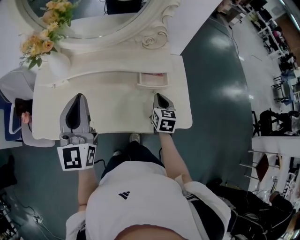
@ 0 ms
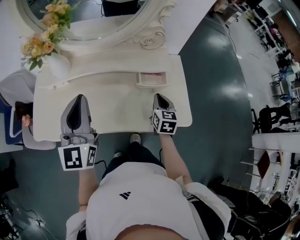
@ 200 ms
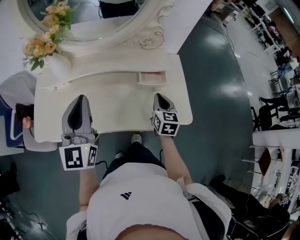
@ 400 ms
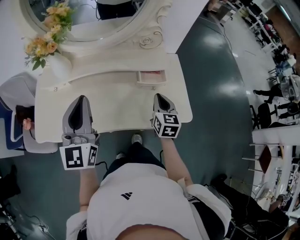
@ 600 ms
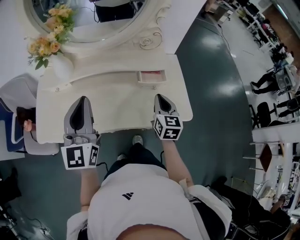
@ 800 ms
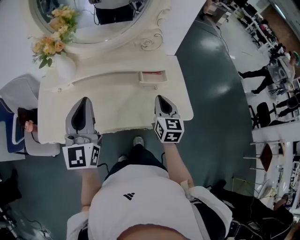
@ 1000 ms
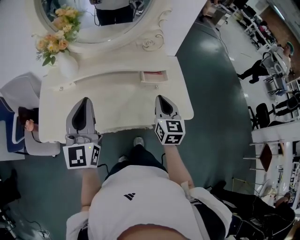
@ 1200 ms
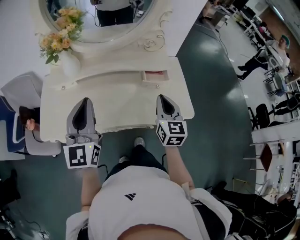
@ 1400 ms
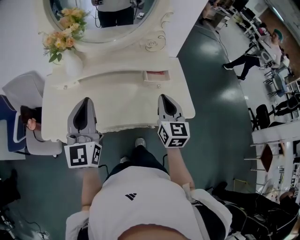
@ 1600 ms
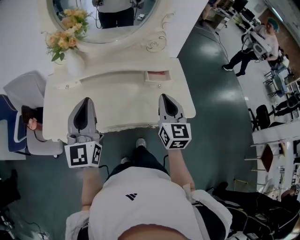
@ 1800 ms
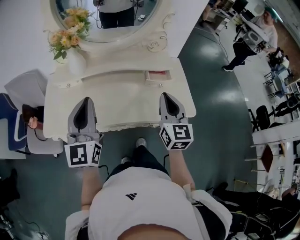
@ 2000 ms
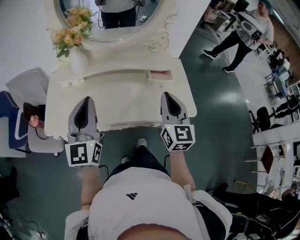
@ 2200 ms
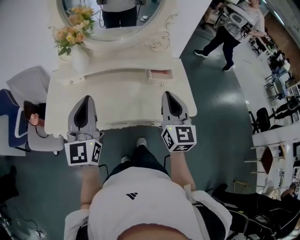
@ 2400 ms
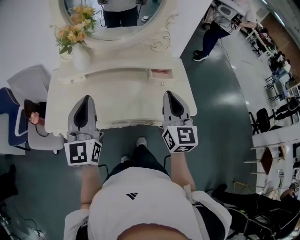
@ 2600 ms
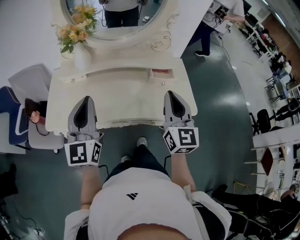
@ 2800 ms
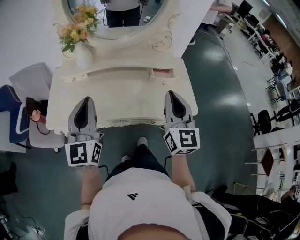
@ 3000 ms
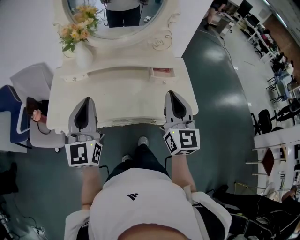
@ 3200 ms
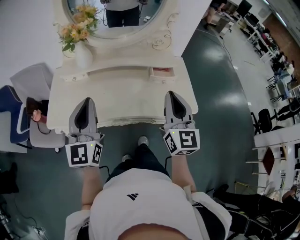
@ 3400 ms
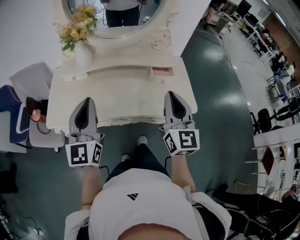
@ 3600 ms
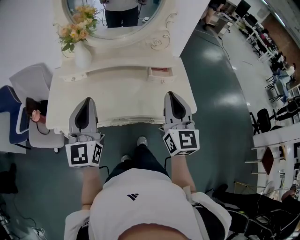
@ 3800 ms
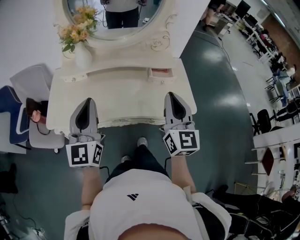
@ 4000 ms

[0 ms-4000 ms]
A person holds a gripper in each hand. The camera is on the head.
0 ms to 1400 ms: The right gripper travels upward and backward by some 15 cm; the left gripper shifts approximately 5 cm backward.
1400 ms to 2600 ms: The left gripper moves some 5 cm. The right gripper moves upward and backward, about 10 cm.
2600 ms to 4000 ms: The grippers move only a little.

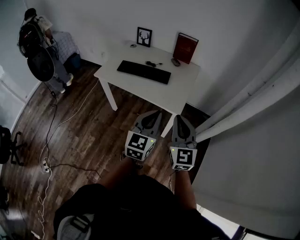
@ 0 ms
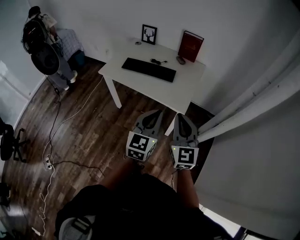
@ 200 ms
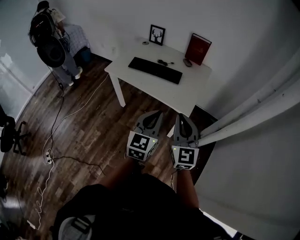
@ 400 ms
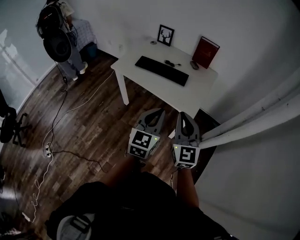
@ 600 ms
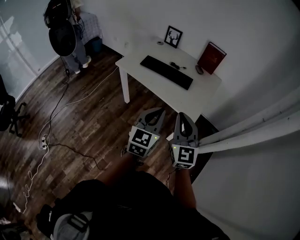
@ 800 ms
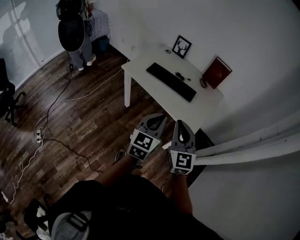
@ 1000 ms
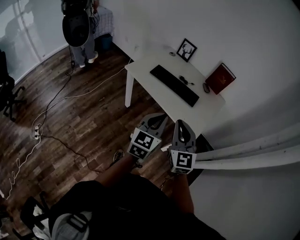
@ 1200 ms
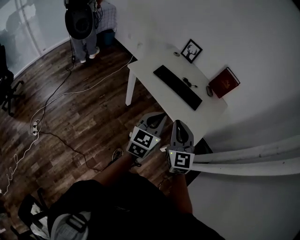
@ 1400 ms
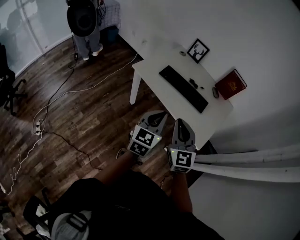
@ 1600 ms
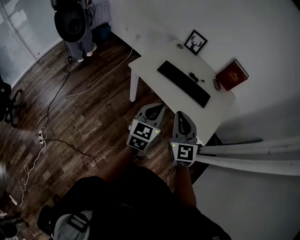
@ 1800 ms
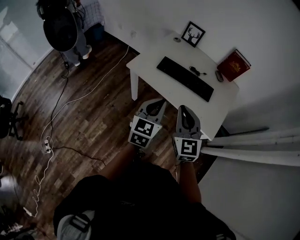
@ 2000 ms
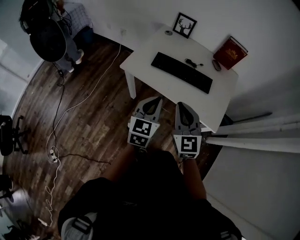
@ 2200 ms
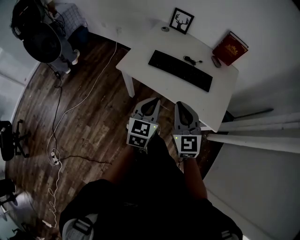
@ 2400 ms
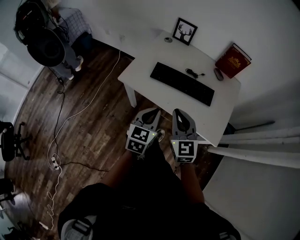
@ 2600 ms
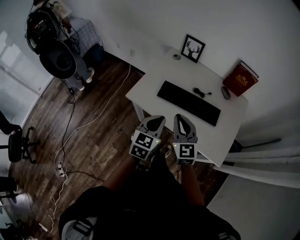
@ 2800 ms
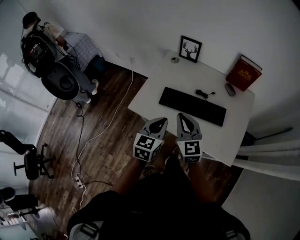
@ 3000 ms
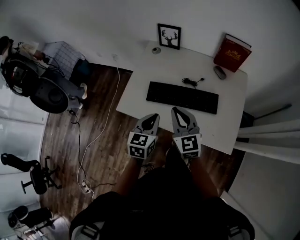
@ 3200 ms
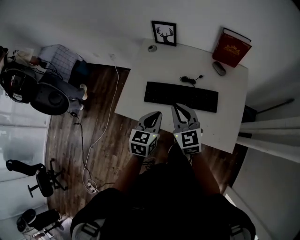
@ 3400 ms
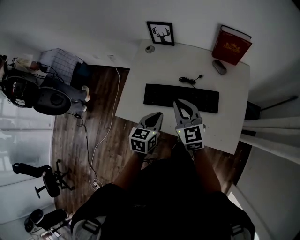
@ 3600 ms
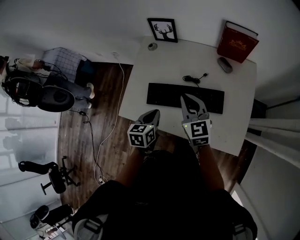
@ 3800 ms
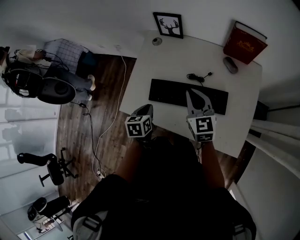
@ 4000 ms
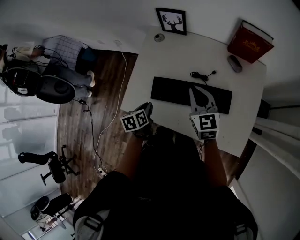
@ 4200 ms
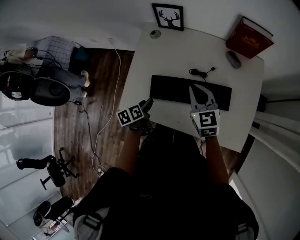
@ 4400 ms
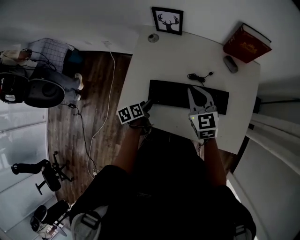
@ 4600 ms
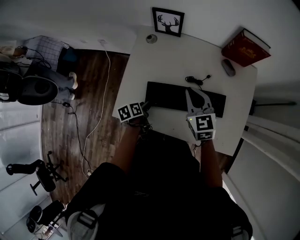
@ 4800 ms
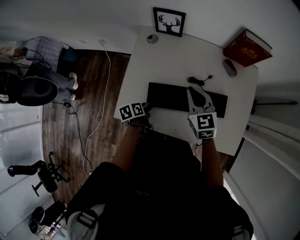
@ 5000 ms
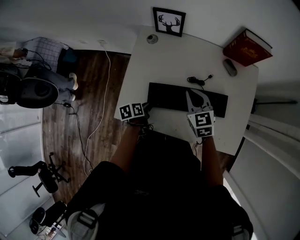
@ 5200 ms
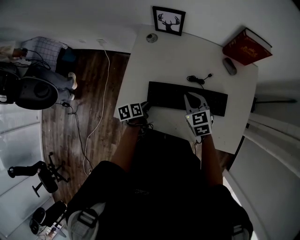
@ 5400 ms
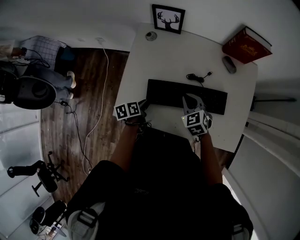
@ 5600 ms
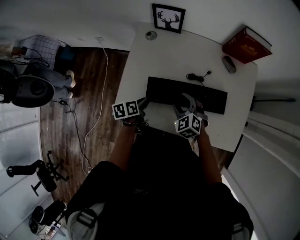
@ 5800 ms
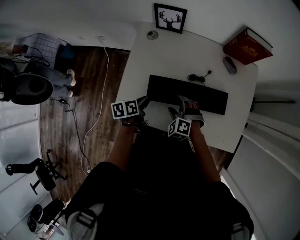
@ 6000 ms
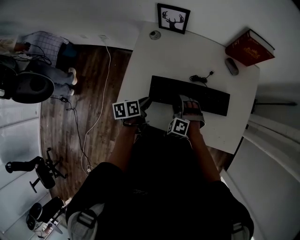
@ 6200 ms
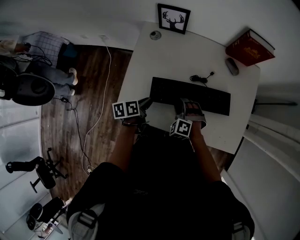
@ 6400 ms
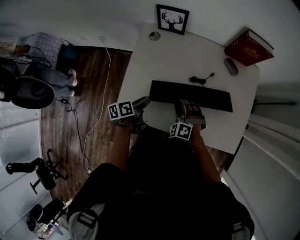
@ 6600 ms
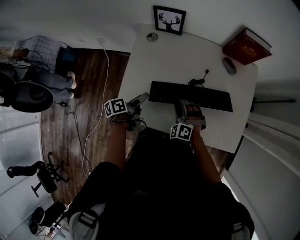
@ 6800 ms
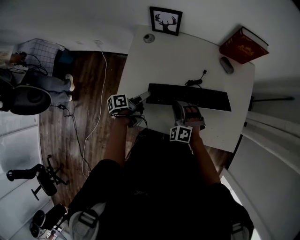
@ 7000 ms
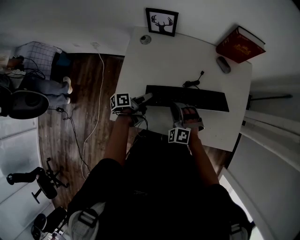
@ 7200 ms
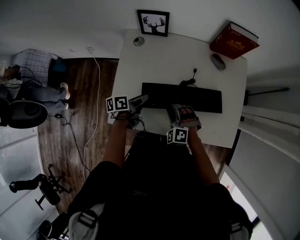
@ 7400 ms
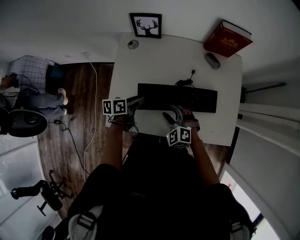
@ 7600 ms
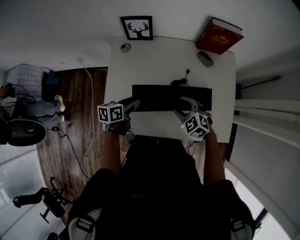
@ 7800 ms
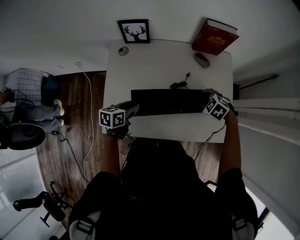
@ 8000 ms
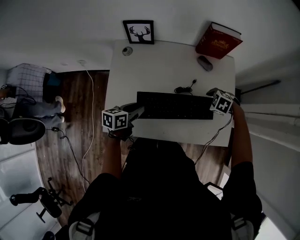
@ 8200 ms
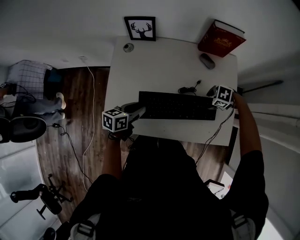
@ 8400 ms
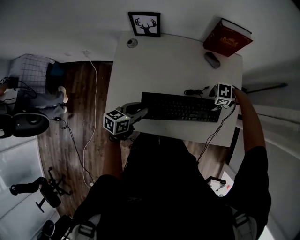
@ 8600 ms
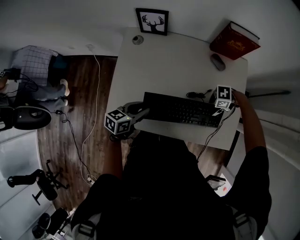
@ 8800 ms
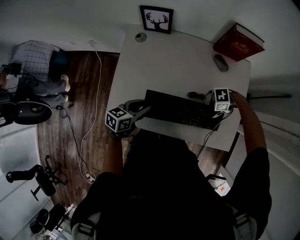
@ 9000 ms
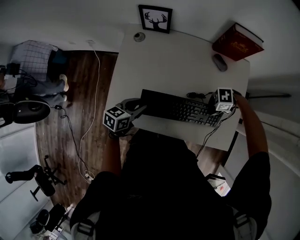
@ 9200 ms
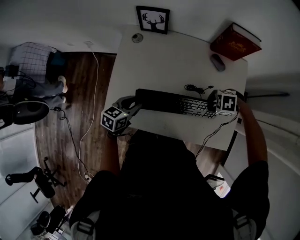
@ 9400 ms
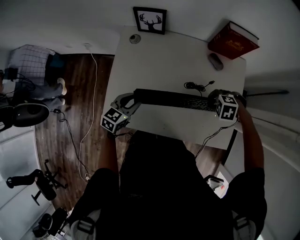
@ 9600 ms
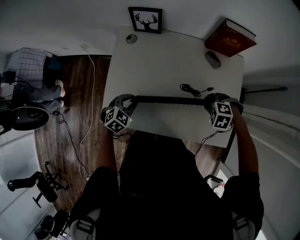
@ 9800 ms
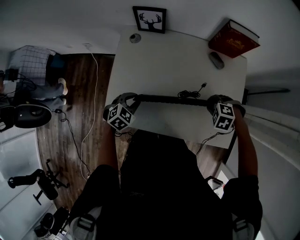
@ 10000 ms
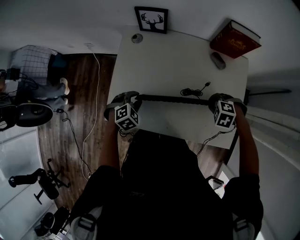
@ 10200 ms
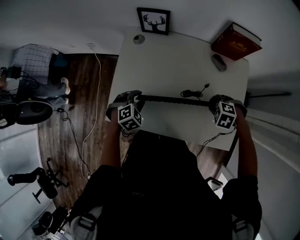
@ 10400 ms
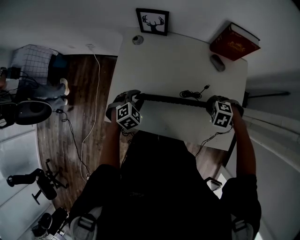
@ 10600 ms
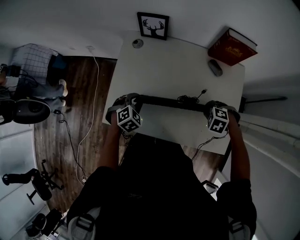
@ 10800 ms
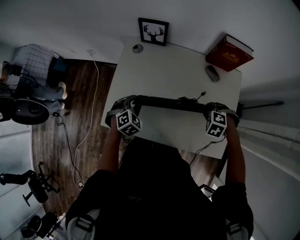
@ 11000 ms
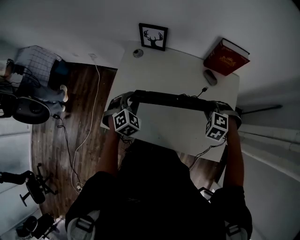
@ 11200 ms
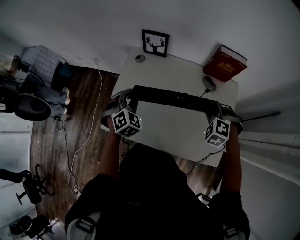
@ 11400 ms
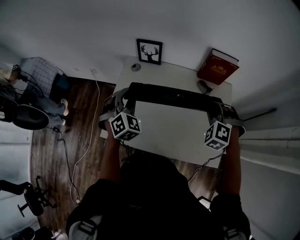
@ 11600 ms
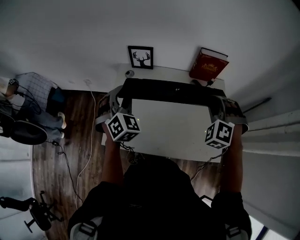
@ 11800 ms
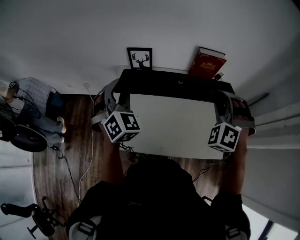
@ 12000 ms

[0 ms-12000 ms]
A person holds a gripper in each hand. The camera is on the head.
0 ms to 1600 ms: Both grippers travel together to the left and forward, approximately 25 cm. The right gripper turns by about 20 degrees.
1600 ms to 3000 ms: Both grippers travel together forward, approximately 25 cm.
3000 ms to 4400 ms: The left gripper goes about 25 cm downward, forward and to the left, rolls counterclockwise, seen from behind, by some 40 degrees, and opens its fingers. The right gripper heads forward, downward and to the right, covering roughly 20 cm.
4400 ms to 6000 ms: The right gripper heads downward and to the left, covering some 15 cm, rolls counterclockwise, seen from behind, by some 50 degrees, and opens; the left gripper closes its fingers.
6000 ms to 7600 ms: The right gripper closes and opens again; the left gripper shifts by approximately 5 cm, changes its angle by about 20 degrees, and opens, then closes once more.
7600 ms to 9000 ms: The right gripper moves roughly 25 cm, and swivels approximately 80 degrees. The left gripper moves about 5 cm, and swivels about 20 degrees.
9000 ms to 10400 ms: The right gripper travels upward by some 5 cm, and tips its fingers downward by some 30 degrees, while the left gripper twists about 50 degrees clockwise, seen from behind.
10400 ms to 12000 ms: The grippers both shift upward by about 30 cm. The left gripper points its fingers approximately 40 degrees further upward. The right gripper points its fingers approximately 50 degrees further upward.

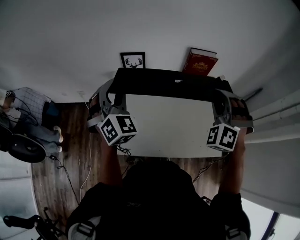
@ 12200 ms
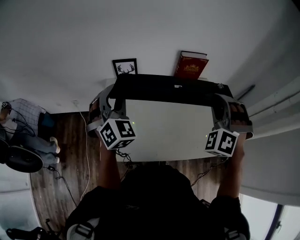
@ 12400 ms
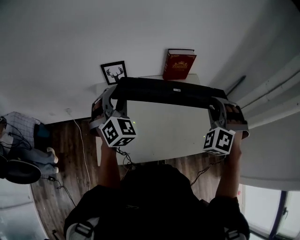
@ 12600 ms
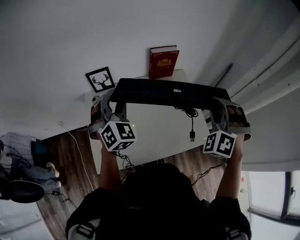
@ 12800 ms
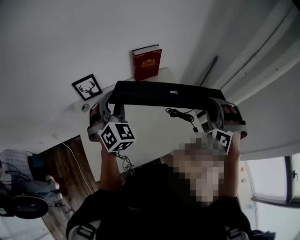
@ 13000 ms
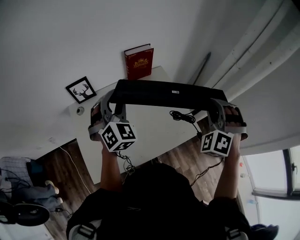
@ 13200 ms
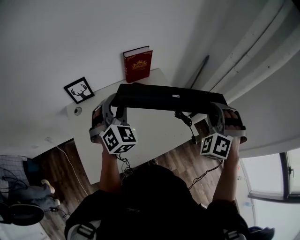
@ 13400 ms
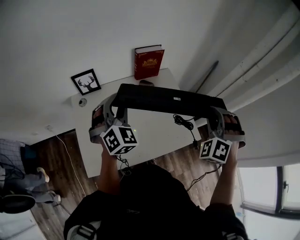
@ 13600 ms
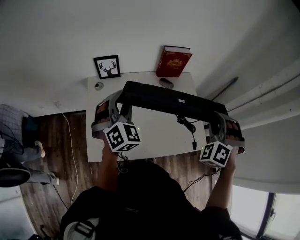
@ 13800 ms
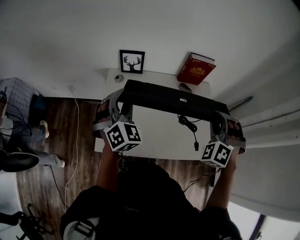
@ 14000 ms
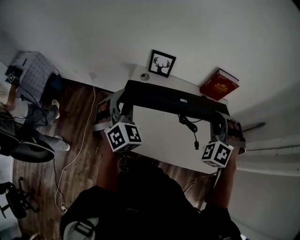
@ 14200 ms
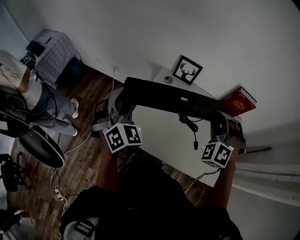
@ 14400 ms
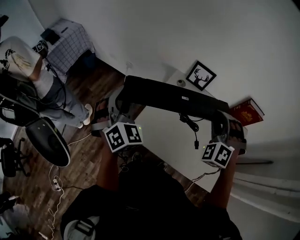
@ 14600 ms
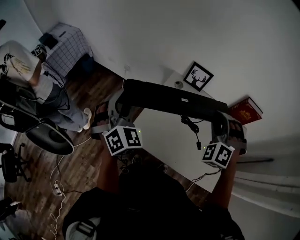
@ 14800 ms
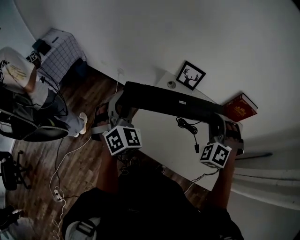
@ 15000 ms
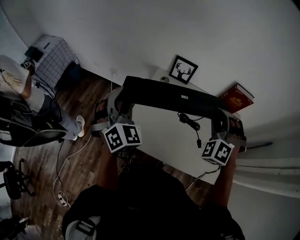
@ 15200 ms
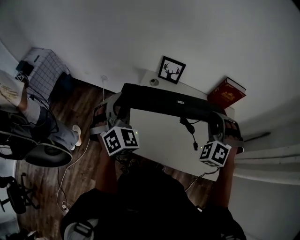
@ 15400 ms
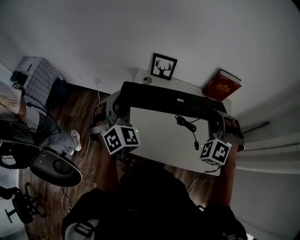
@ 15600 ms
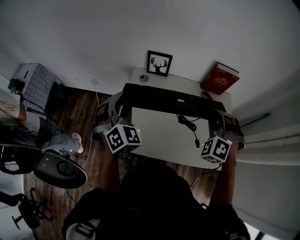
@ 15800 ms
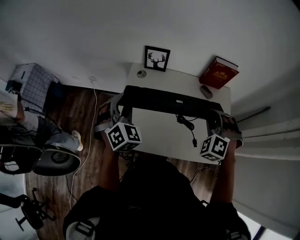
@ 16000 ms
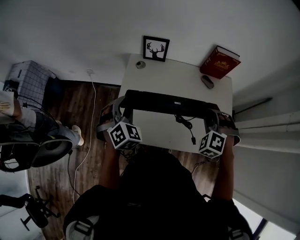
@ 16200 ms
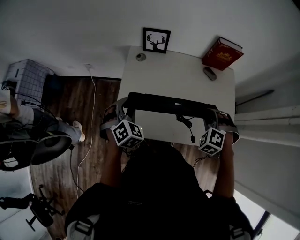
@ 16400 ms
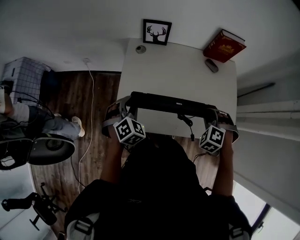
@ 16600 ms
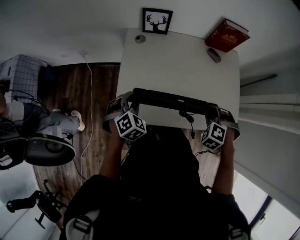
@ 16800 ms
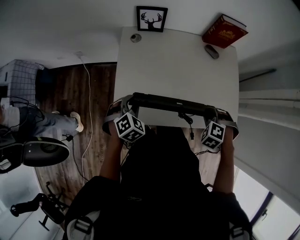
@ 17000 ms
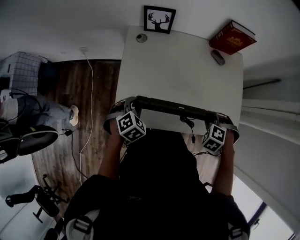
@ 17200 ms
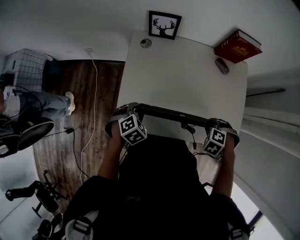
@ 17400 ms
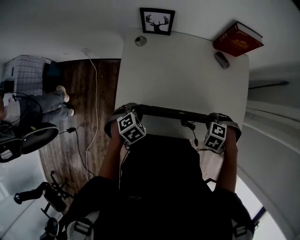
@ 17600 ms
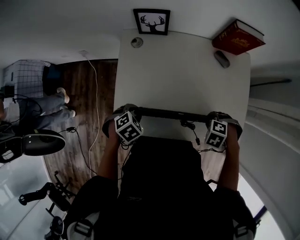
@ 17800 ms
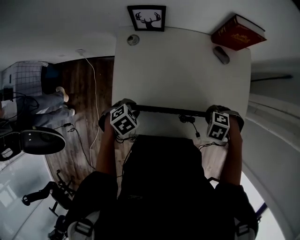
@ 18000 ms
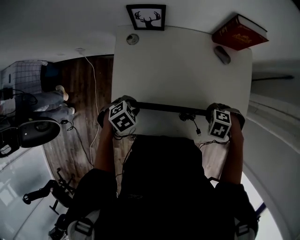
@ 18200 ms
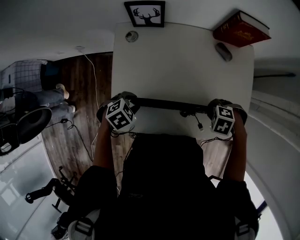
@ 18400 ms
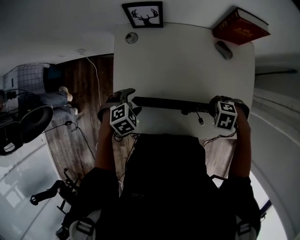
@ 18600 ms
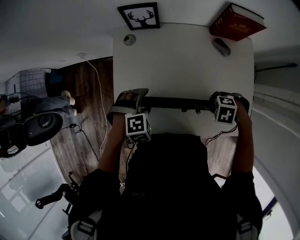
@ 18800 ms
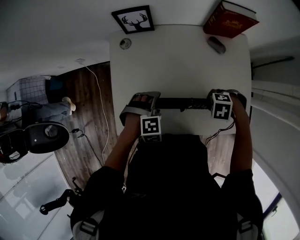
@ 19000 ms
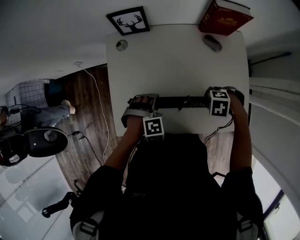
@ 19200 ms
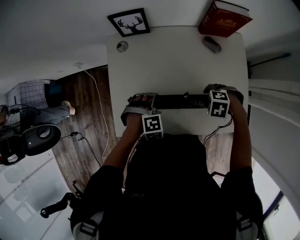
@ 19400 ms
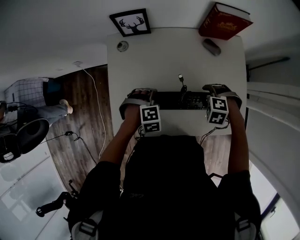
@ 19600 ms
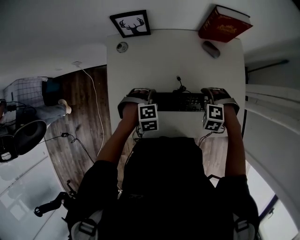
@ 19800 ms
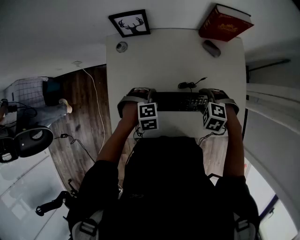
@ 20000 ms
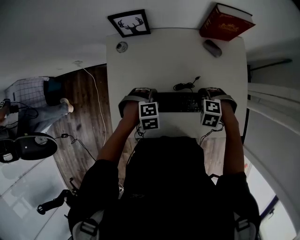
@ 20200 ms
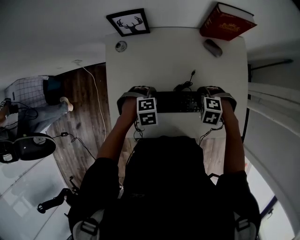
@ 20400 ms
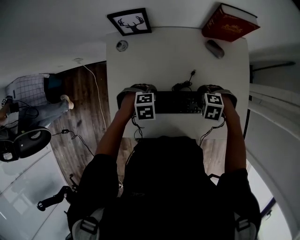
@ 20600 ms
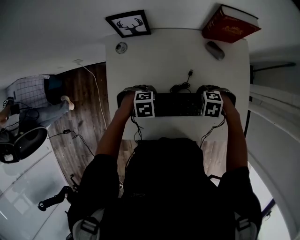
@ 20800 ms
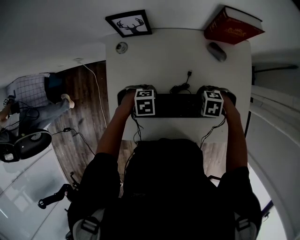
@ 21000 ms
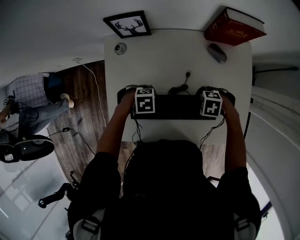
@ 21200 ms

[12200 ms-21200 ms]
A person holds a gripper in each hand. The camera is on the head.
13800 ms to 15200 ms: The left gripper moves approximately 30 cm, and changes its angle by roughly 30 degrees, while the right gripper moves roughly 25 cm, and changes its angle by about 30 degrees.
15200 ms to 16600 ms: The left gripper shifts some 20 cm downward, and points its fingers some 30 degrees further downward; the right gripper goes some 25 cm downward and backward, and points its fingers roughly 30 degrees further downward.
16600 ms to 18200 ms: Both grippers travel together downward, approximately 10 cm. The left gripper rotates some 50 degrees, while the right gripper swivels about 40 degrees.
18200 ms to 19800 ms: The right gripper ends up about 5 cm from where it was, swivels some 20 degrees, and opens. Meanwhile the left gripper shifts by some 10 cm, swivels some 40 degrees, and opens.
19800 ms to 21200 ms: The left gripper turns by approximately 30 degrees. The right gripper changes its angle by approximately 30 degrees.
